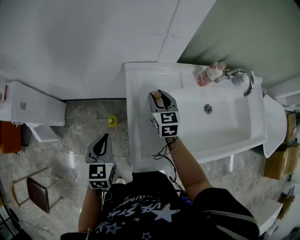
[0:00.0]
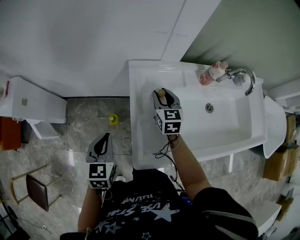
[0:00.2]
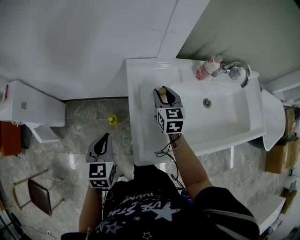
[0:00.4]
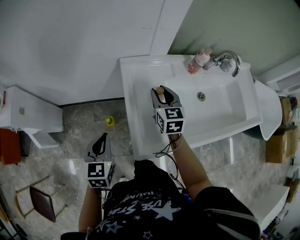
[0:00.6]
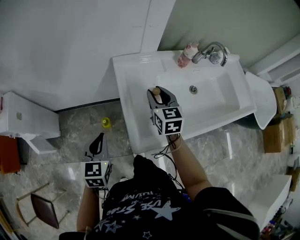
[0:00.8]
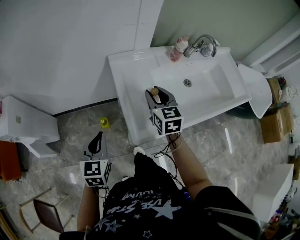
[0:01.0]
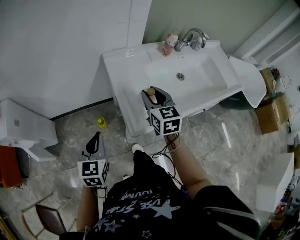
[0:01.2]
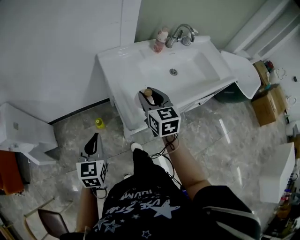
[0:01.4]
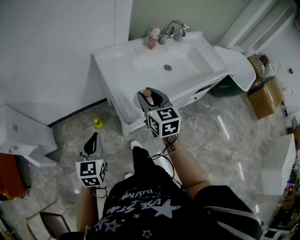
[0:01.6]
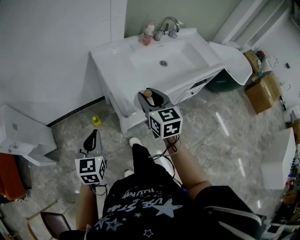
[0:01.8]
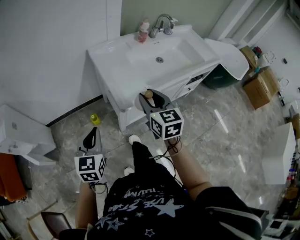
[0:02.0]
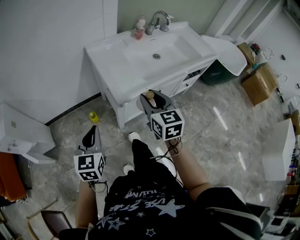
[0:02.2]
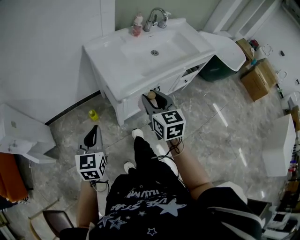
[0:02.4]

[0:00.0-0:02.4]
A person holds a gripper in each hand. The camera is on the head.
0:00.0 to 0:01.2: The right gripper travels backward and upward by roughly 25 cm. The left gripper goes about 15 cm backward.
0:01.2 to 0:02.4: The right gripper goes roughly 25 cm backward. The left gripper goes roughly 15 cm backward.

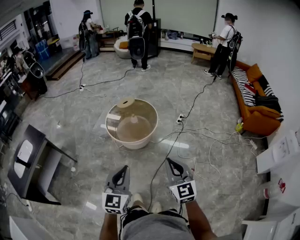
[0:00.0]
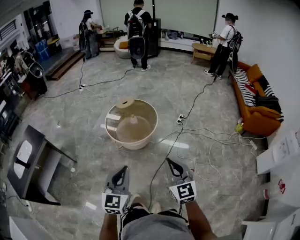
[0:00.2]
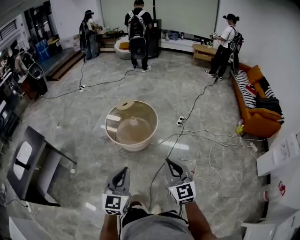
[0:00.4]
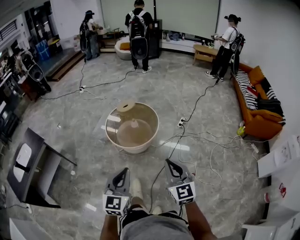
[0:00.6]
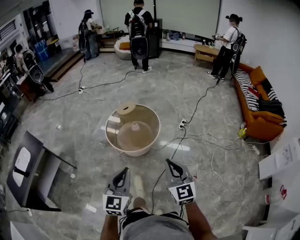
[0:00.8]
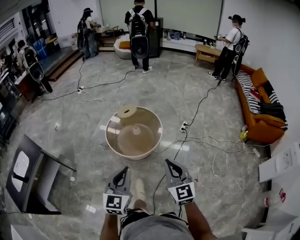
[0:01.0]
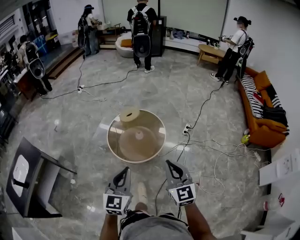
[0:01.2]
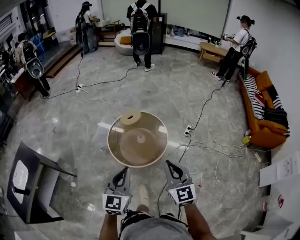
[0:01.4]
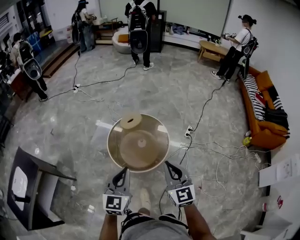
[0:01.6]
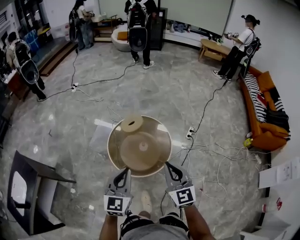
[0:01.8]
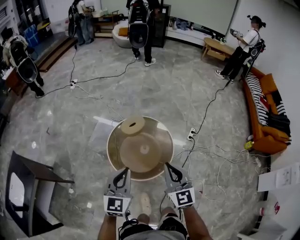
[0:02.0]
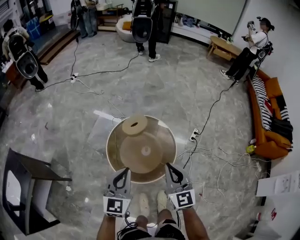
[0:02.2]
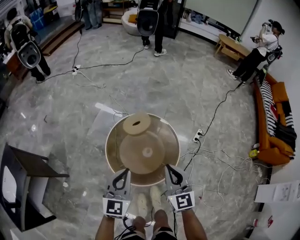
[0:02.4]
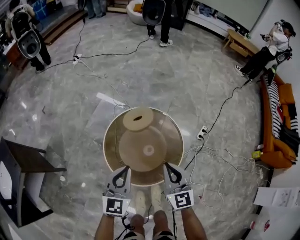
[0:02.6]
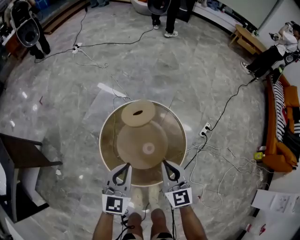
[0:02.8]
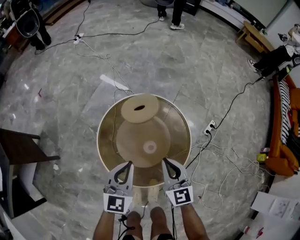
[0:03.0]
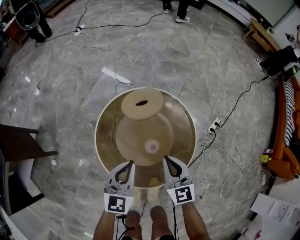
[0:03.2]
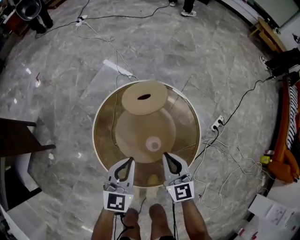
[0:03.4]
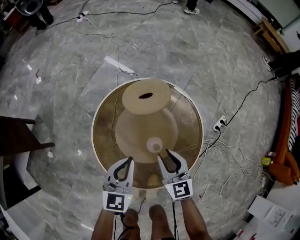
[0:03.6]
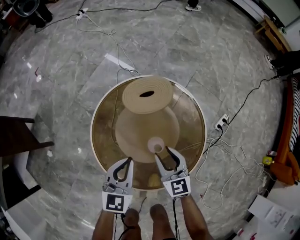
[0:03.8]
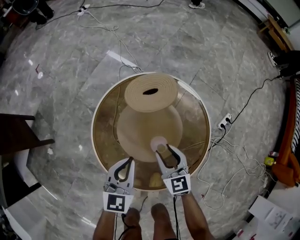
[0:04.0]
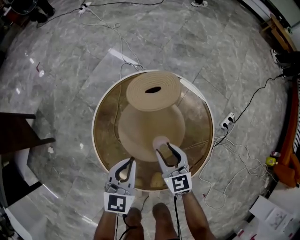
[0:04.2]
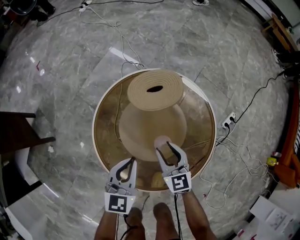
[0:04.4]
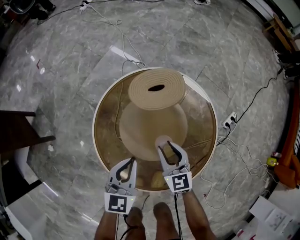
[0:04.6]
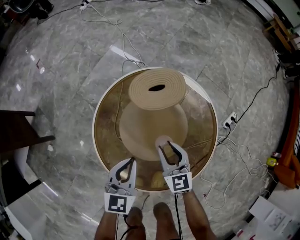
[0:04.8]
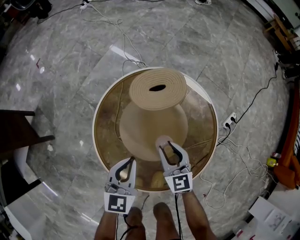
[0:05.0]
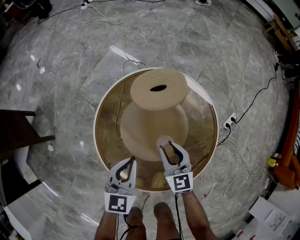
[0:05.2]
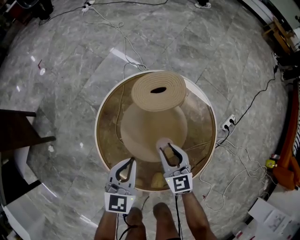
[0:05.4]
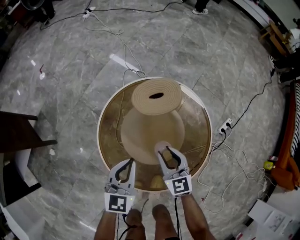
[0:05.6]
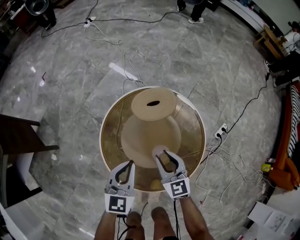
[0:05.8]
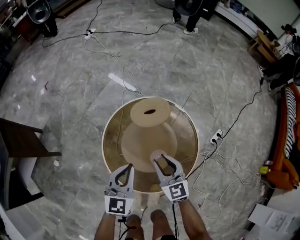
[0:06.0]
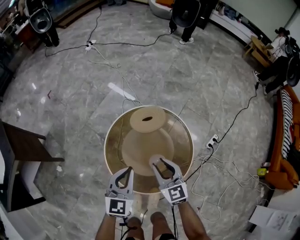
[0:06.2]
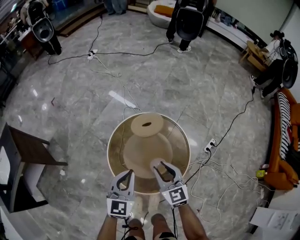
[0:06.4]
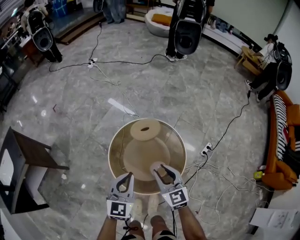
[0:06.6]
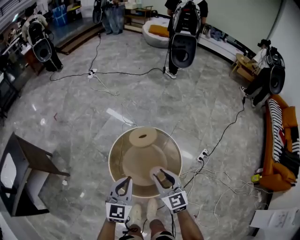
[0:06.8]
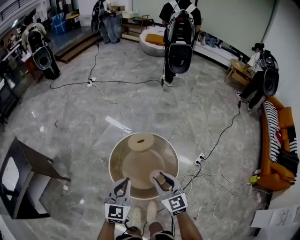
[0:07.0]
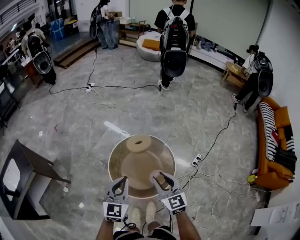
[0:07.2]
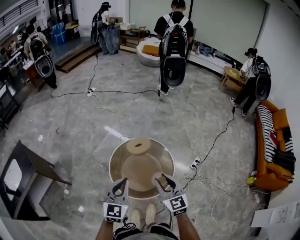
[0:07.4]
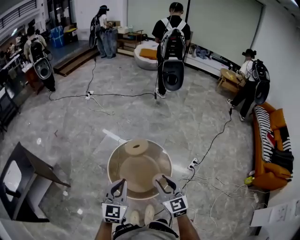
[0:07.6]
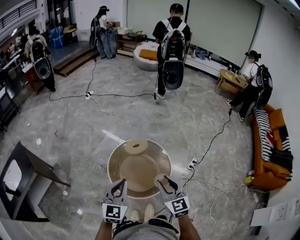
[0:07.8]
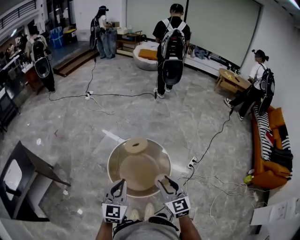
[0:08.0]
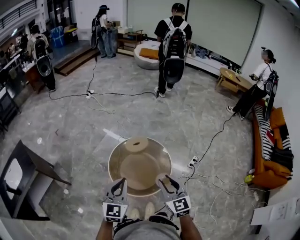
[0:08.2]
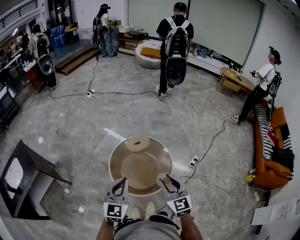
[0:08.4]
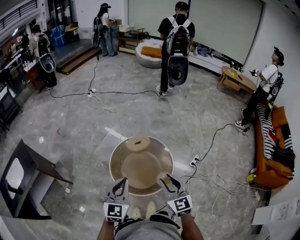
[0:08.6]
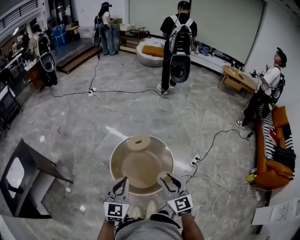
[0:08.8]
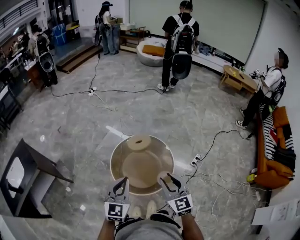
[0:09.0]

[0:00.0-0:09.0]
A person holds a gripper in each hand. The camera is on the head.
0:00.0 to 0:01.6: The pair of grippers is taken forward, roughly 40 cm.
0:01.6 to 0:03.0: The grippers both shift downward and forward by roughly 50 cm.
0:03.0 to 0:04.4: Both grippers move downward, roughly 20 cm. The right gripper opens.
0:04.4 to 0:06.0: The two grippers go about 15 cm upward.
0:06.0 to 0:07.6: The grippers both shift upward and backward by approximately 40 cm.
0:07.6 to 0:09.0: The grippers stay close to where they were, moving slightly.

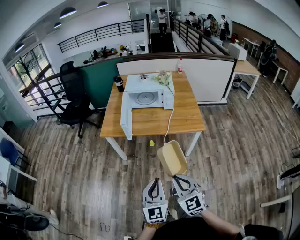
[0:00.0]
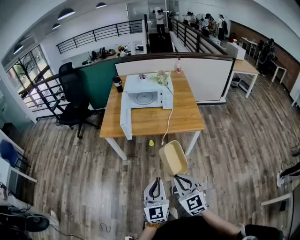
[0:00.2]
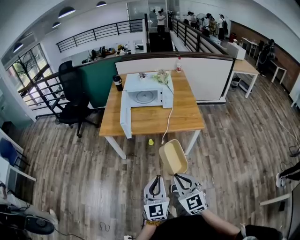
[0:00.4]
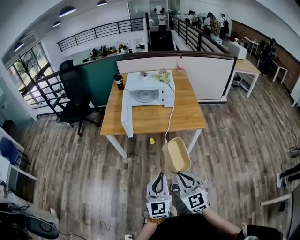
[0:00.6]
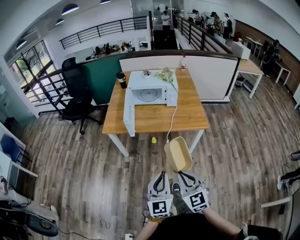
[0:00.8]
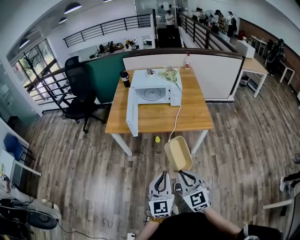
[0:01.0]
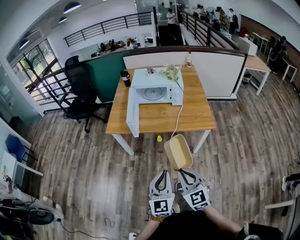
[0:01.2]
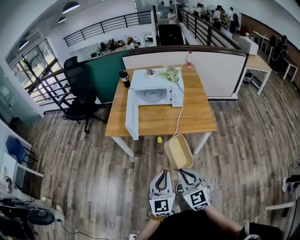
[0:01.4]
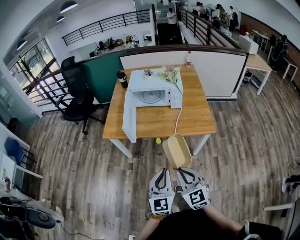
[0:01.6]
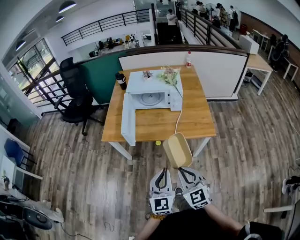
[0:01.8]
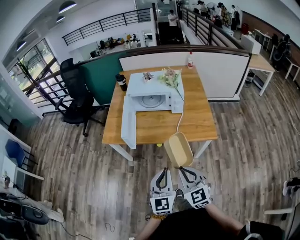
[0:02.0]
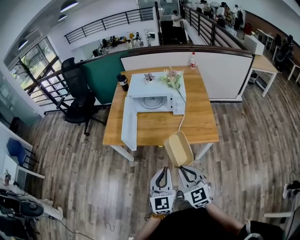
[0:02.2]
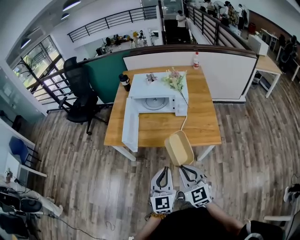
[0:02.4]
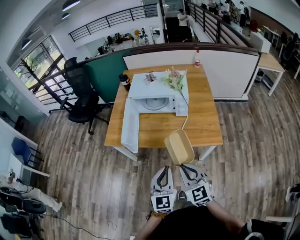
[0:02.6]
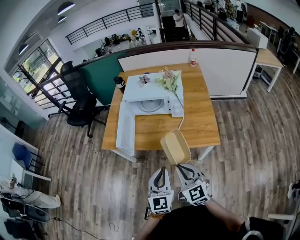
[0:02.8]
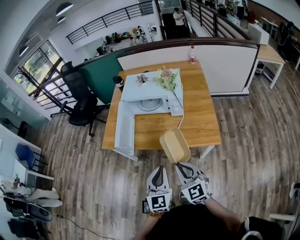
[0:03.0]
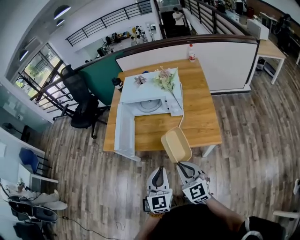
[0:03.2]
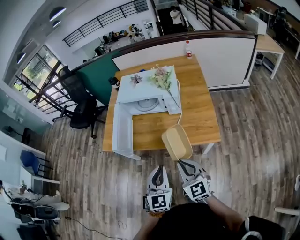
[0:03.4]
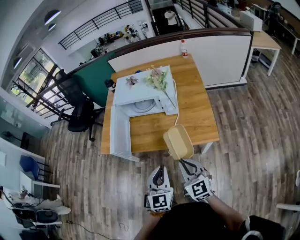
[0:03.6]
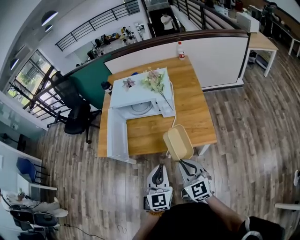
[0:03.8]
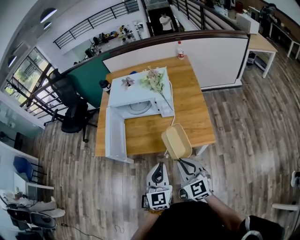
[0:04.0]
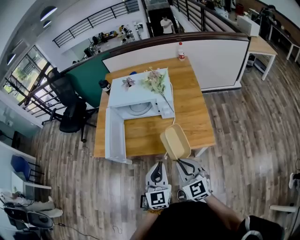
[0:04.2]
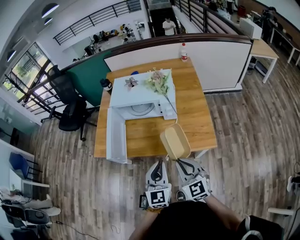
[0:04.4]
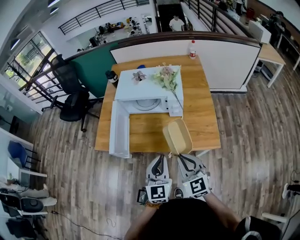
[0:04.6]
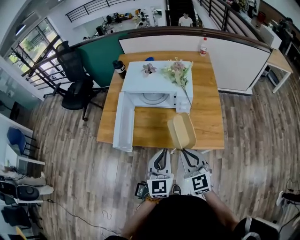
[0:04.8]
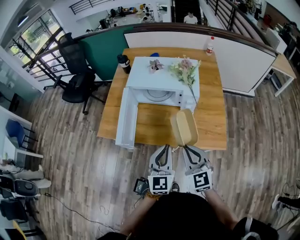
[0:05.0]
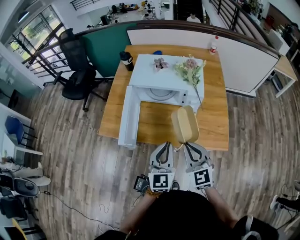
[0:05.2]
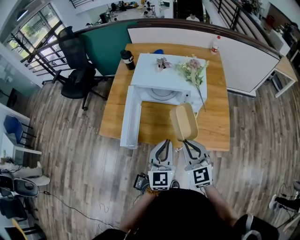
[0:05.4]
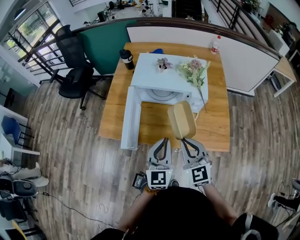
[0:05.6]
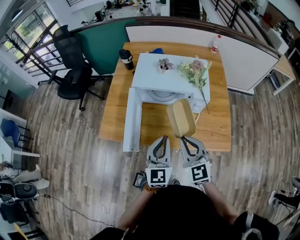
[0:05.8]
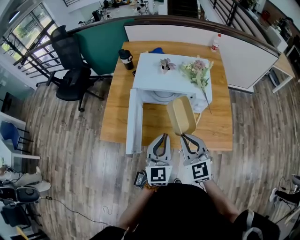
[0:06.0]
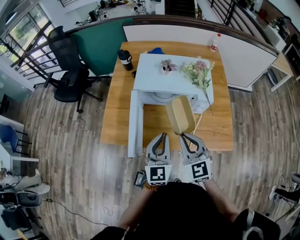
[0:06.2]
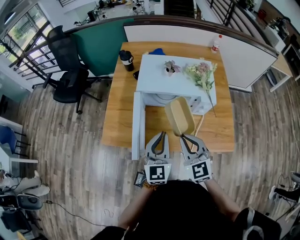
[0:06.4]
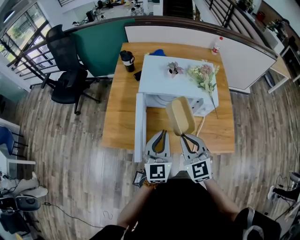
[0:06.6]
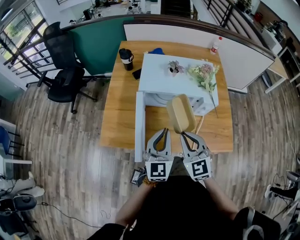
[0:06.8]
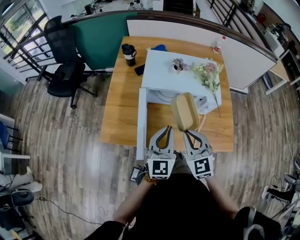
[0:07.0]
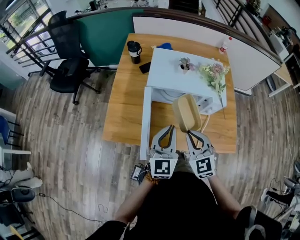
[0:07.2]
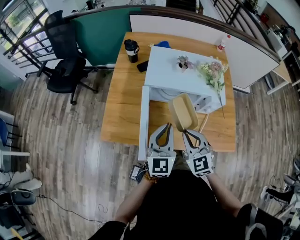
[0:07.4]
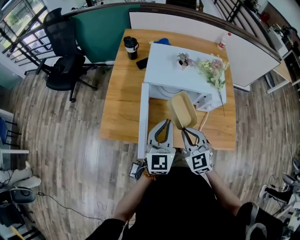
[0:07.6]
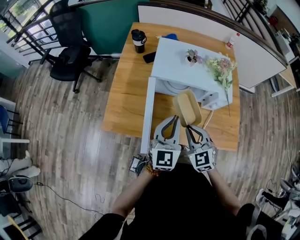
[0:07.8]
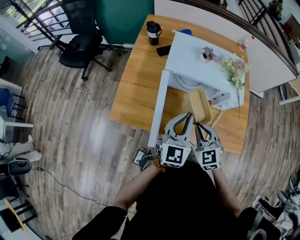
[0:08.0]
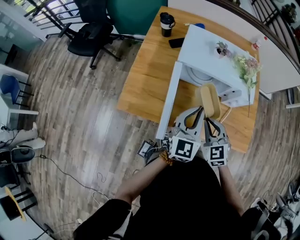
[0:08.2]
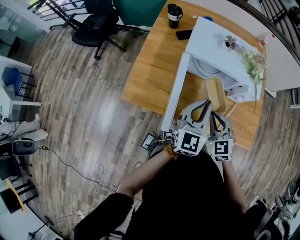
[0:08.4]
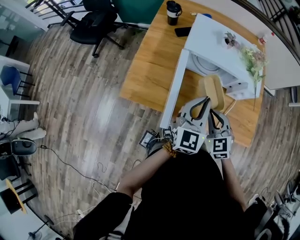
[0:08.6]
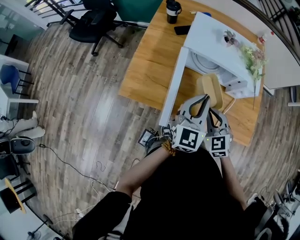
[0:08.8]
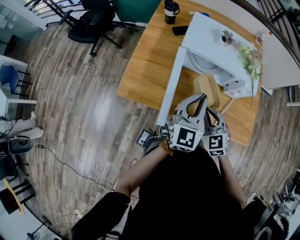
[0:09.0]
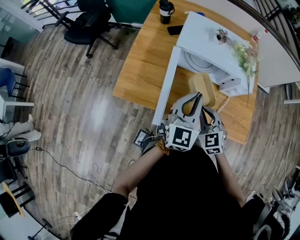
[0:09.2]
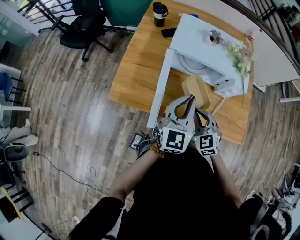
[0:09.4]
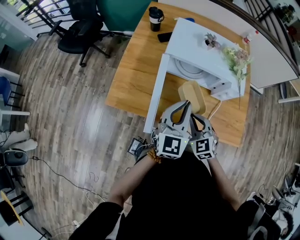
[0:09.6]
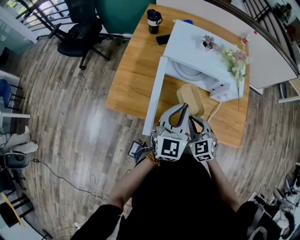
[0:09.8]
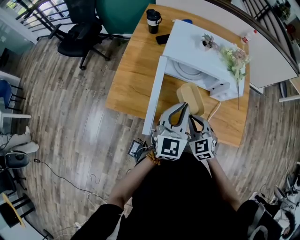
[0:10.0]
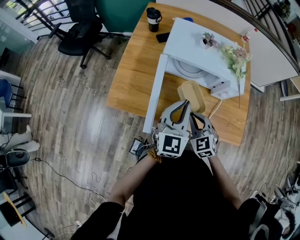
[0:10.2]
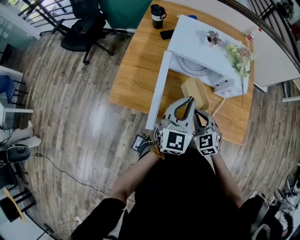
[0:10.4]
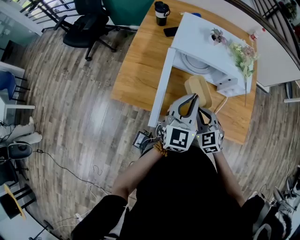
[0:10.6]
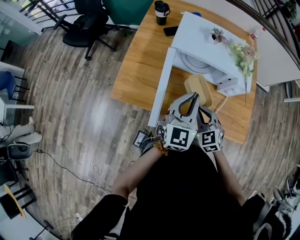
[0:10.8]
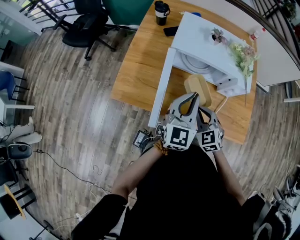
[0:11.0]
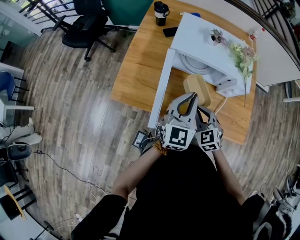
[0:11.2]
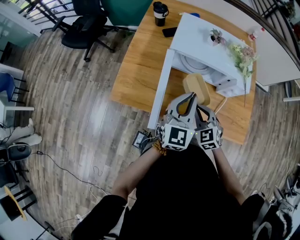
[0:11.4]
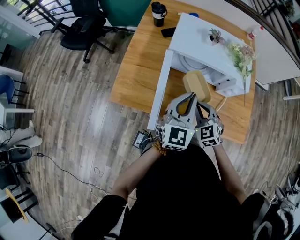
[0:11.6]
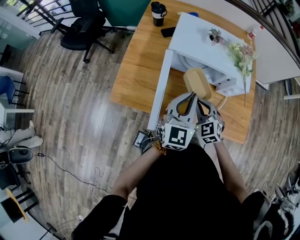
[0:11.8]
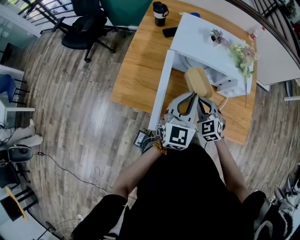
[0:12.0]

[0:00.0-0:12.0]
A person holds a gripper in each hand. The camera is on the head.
0:00.0 to 0:01.6: Both grippers travel together forward, some 10 cm.
0:01.6 to 0:03.0: The grippers both shift forward and to the right by some 15 cm.
0:03.0 to 0:04.4: The two grippers go approximately 10 cm forward.
0:04.4 to 0:06.0: Both grippers travel together forward and to the left, roughly 20 cm.
0:06.0 to 0:07.6: The right gripper travels downward, to the left and forward by some 10 cm. Meanwhile the left gripper heads forward and to the left, covering approximately 10 cm.
0:07.6 to 0:09.0: There are only small adjustments of the grippers.
0:09.0 to 0:10.4: The grippers make only small movements.
0:10.4 to 0:12.0: The right gripper heads forward, covering about 5 cm.
